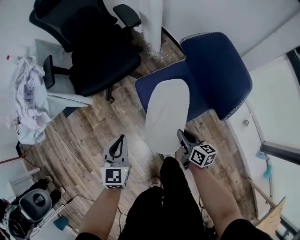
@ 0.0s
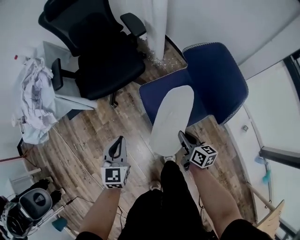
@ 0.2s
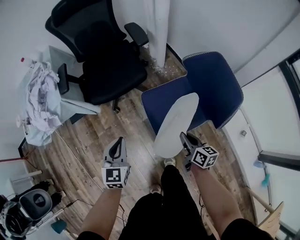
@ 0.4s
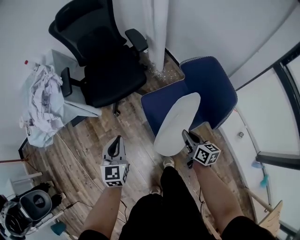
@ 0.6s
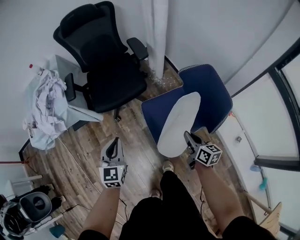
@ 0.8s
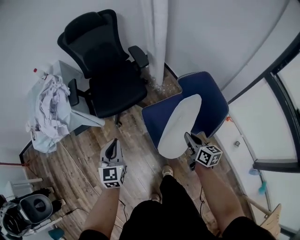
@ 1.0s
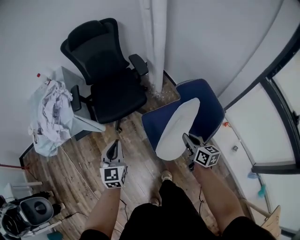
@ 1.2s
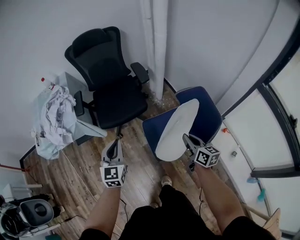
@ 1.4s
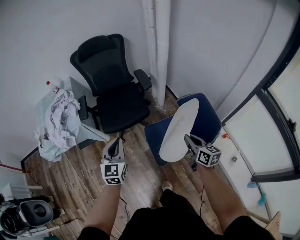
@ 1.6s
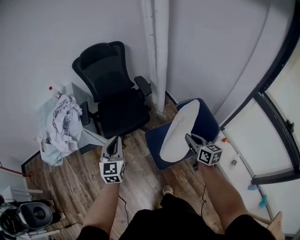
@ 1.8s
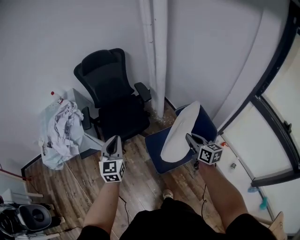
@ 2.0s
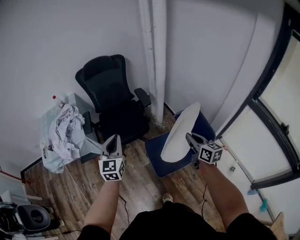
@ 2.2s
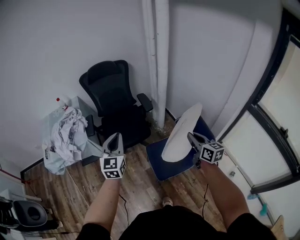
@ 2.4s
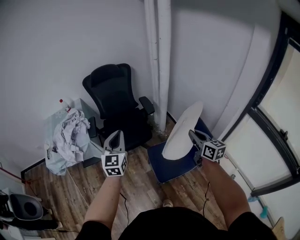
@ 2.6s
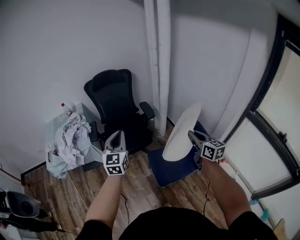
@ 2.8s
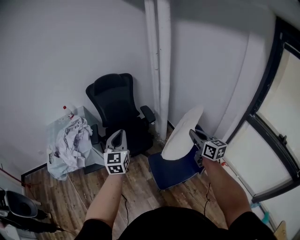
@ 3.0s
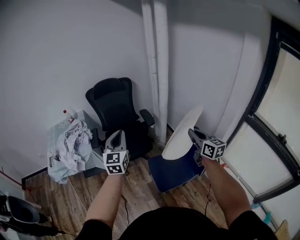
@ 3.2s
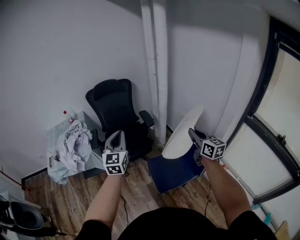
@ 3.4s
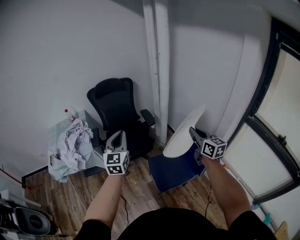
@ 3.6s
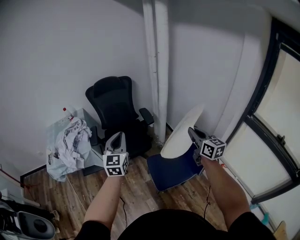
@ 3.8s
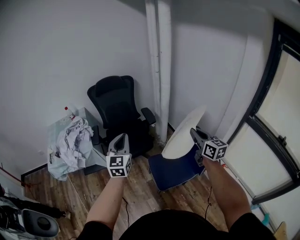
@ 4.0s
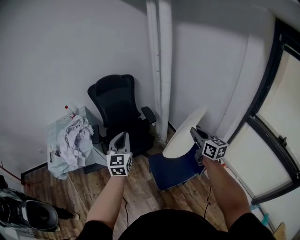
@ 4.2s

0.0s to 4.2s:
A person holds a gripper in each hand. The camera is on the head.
0.0s to 1.4s: Both grippers travel together upward, about 25 cm.
1.4s to 2.8s: The grippers both shift upward by roughly 20 cm.
2.8s to 4.2s: The grippers make only small movements.

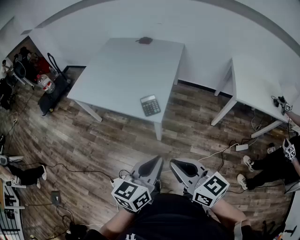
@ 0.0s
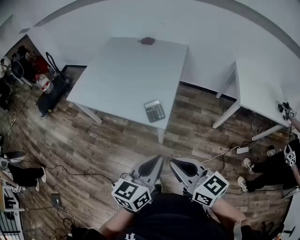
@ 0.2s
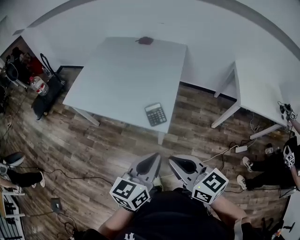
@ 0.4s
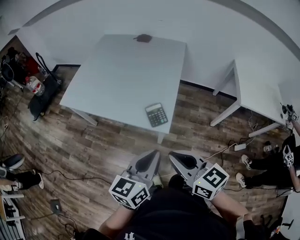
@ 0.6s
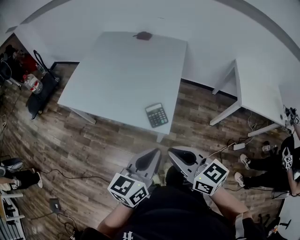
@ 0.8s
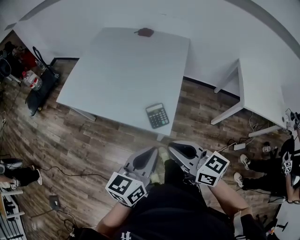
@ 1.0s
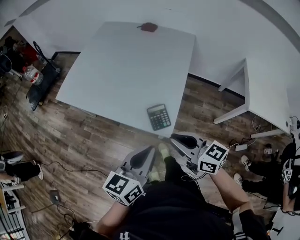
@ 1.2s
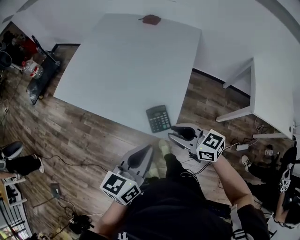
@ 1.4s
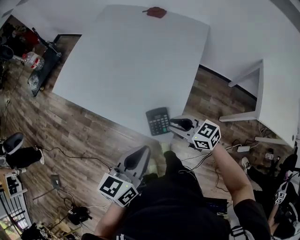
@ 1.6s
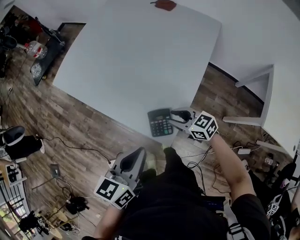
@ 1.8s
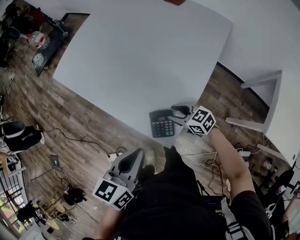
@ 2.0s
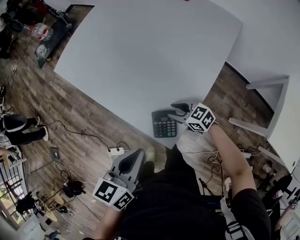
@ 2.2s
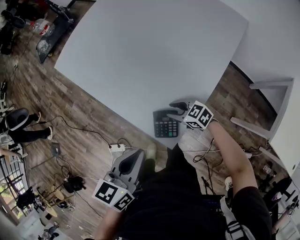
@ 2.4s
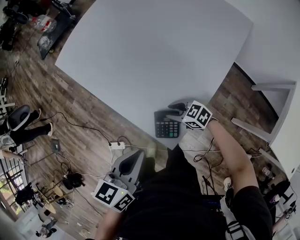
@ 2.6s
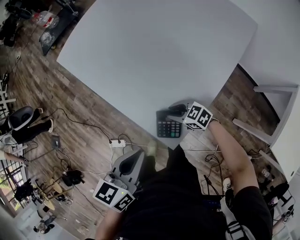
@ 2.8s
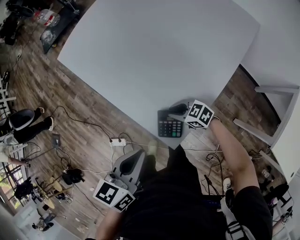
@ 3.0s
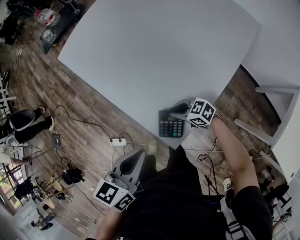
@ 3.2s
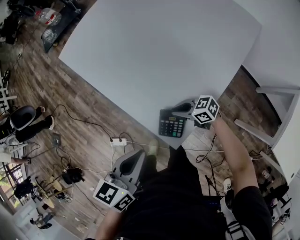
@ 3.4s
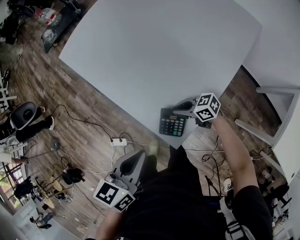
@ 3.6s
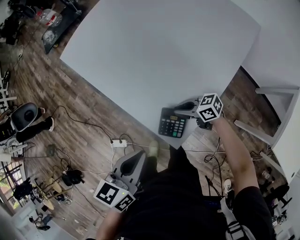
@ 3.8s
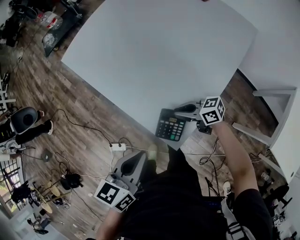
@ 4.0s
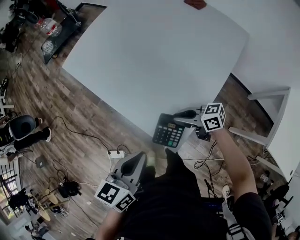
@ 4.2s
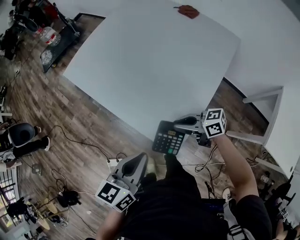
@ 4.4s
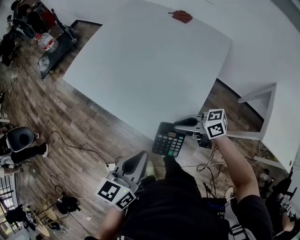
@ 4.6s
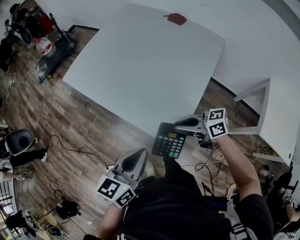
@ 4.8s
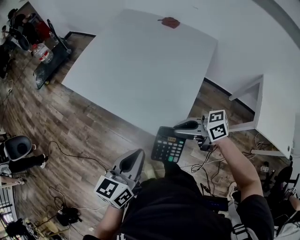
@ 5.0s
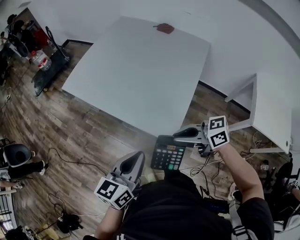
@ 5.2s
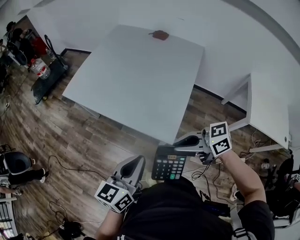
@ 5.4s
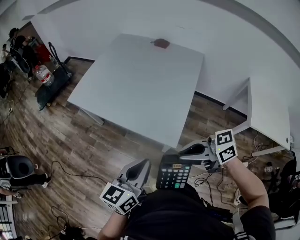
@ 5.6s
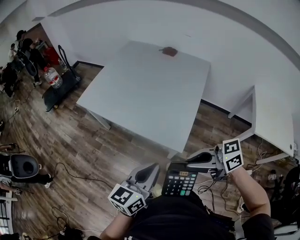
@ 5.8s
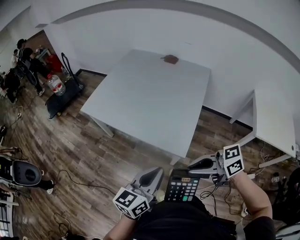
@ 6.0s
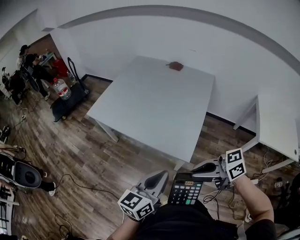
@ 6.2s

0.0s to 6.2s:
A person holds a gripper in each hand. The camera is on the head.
0.0s to 1.6s: The right gripper heads forward and downward, covering about 40 cm, and rotates roughly 30 degrees. The left gripper is displaced forward by roughly 30 cm.
1.6s to 3.2s: The left gripper ends up some 5 cm from where it was, and swivels some 20 degrees. The right gripper heads downward, covering approximately 15 cm, and changes its angle by about 40 degrees.
3.2s to 4.6s: The left gripper moves upward, about 5 cm. Meanwhile the right gripper shifts roughly 20 cm upward, and turns by roughly 30 degrees.
4.6s to 6.2s: The right gripper shifts approximately 30 cm backward, upward and to the left, while the left gripper moves backward and to the left, approximately 15 cm.

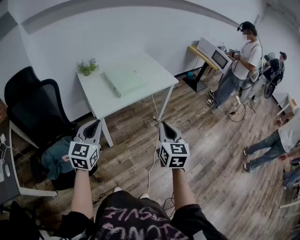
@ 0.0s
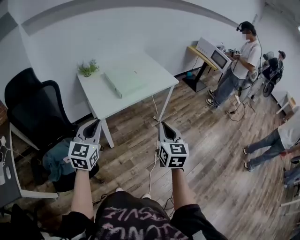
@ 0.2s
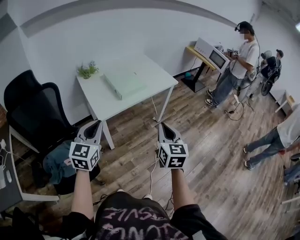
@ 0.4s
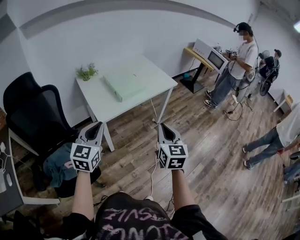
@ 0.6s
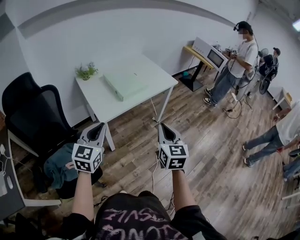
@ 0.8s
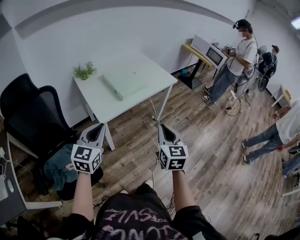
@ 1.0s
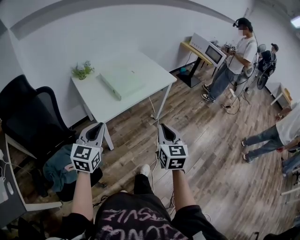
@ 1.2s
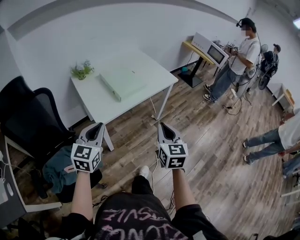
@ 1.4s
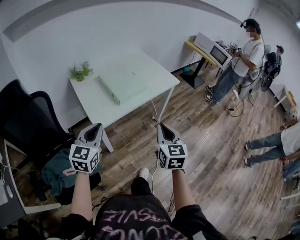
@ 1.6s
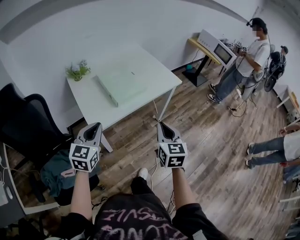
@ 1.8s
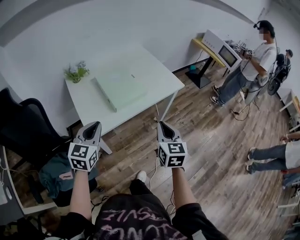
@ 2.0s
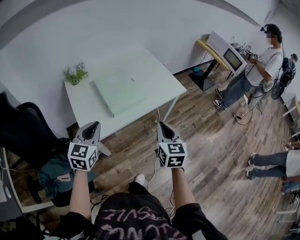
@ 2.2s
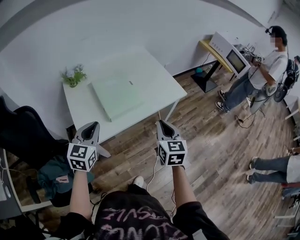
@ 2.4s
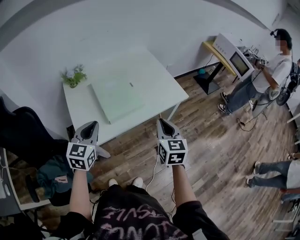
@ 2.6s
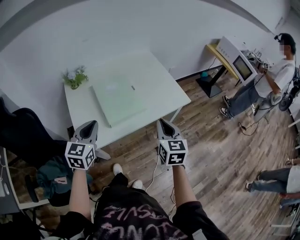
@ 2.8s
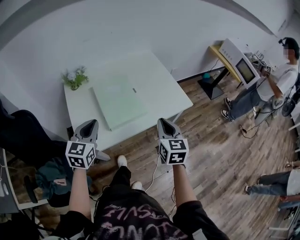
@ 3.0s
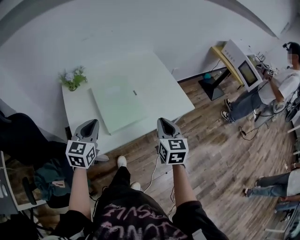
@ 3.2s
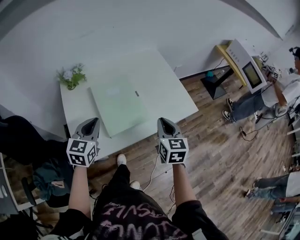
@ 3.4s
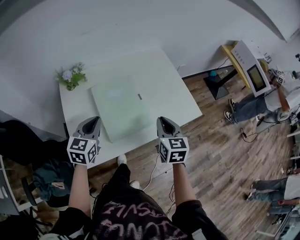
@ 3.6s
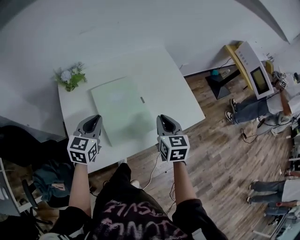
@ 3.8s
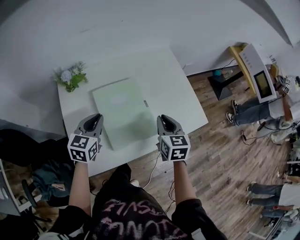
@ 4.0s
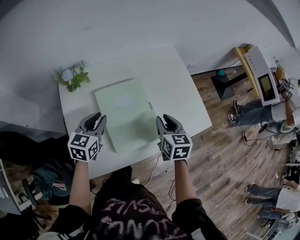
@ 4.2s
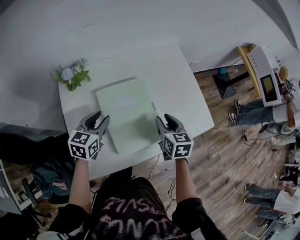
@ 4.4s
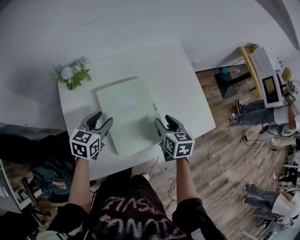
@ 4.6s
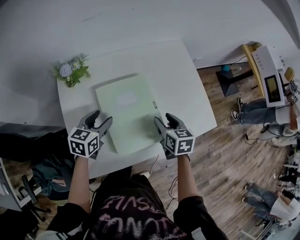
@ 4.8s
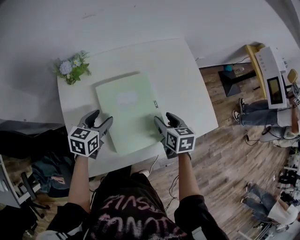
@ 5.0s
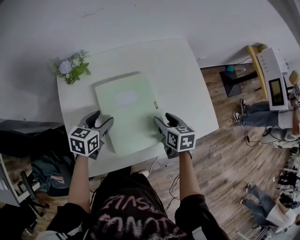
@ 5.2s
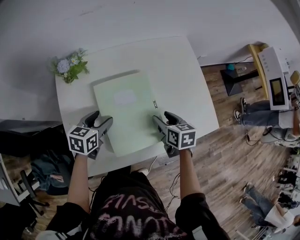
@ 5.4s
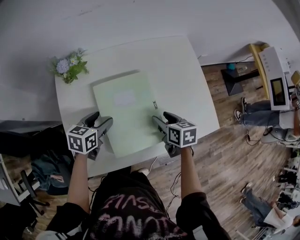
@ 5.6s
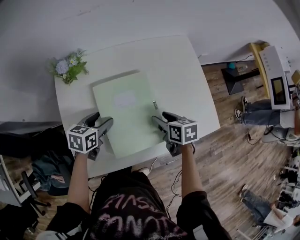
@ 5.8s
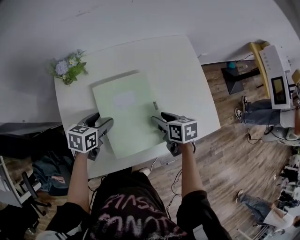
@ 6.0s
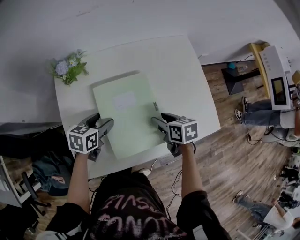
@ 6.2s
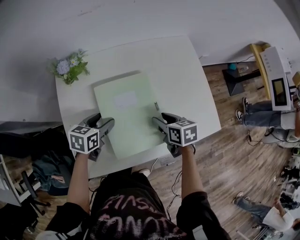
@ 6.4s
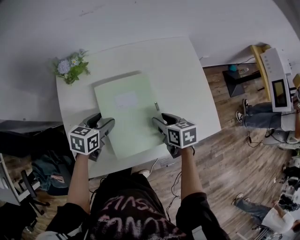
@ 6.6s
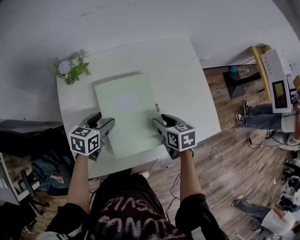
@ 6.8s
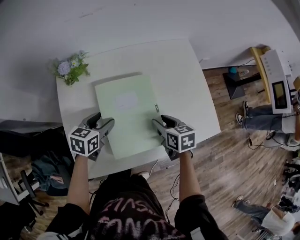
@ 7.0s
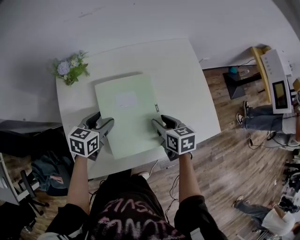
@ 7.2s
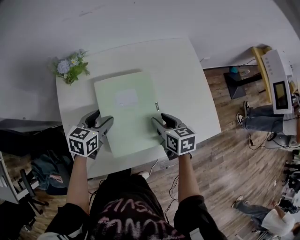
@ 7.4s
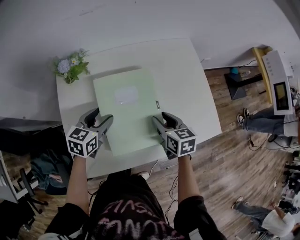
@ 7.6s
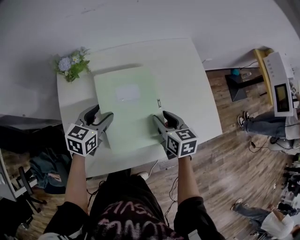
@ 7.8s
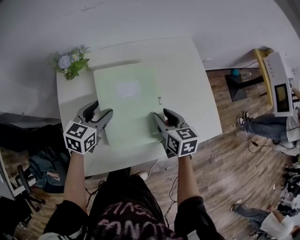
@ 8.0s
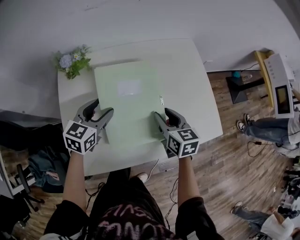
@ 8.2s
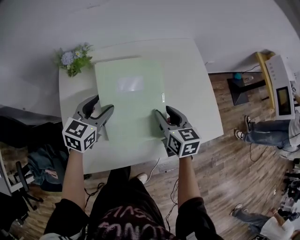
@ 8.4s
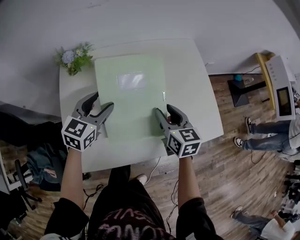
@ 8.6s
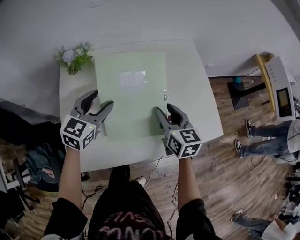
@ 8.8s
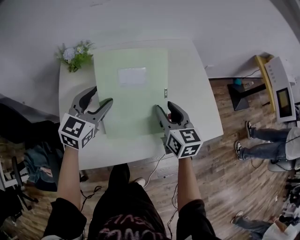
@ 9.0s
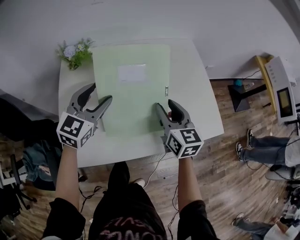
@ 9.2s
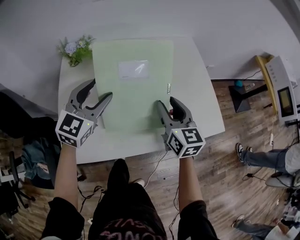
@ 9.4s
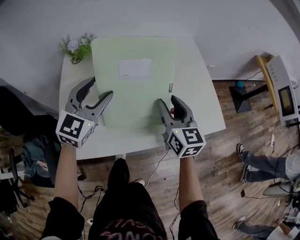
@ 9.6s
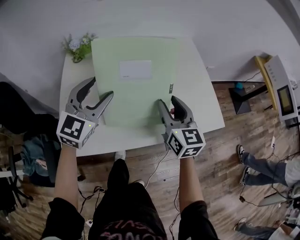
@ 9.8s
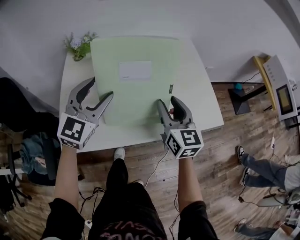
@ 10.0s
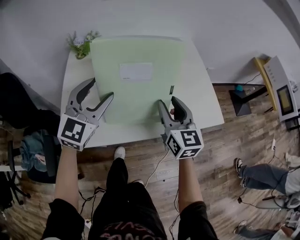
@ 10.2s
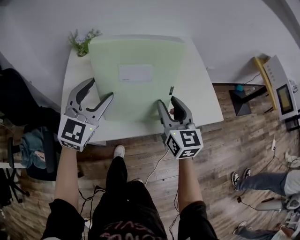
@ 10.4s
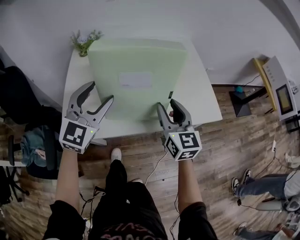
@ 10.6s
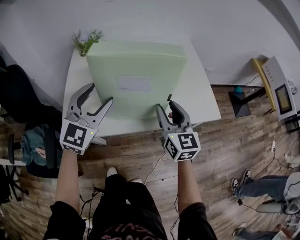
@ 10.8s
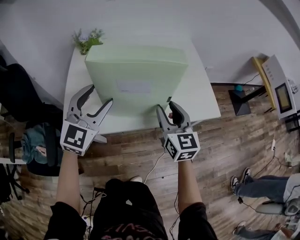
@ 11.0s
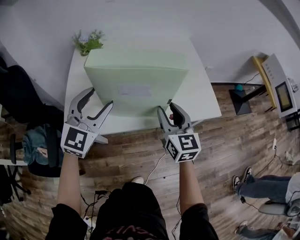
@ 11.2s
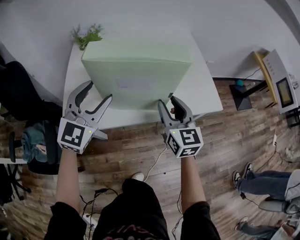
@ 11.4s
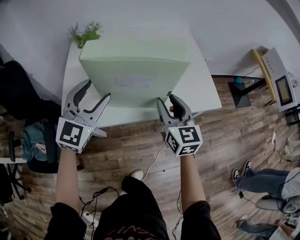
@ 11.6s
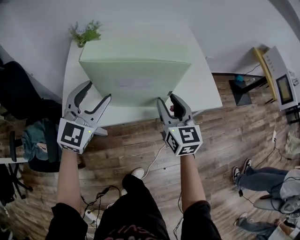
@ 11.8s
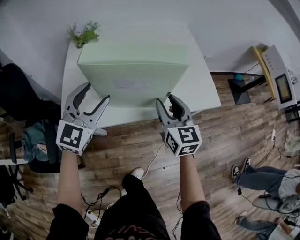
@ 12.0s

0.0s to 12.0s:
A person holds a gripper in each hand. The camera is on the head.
0.0s to 1.6s: Both grippers move forward, approximately 10 cm.
1.6s to 3.0s: The grippers both shift forward by about 30 cm.
3.0s to 4.4s: The left gripper shifts approximately 25 cm forward and downward, and opens, while the right gripper shifts some 25 cm forward, downward and to the left, changes its angle by about 20 degrees, and opens its fingers.
4.4s to 6.0s: Both grippers move downward, about 10 cm. The right gripper changes its angle by some 30 degrees. The left gripper changes its angle by approximately 20 degrees, and opens.
6.0s to 7.6s: The grippers make only small movements.
7.6s to 9.0s: The left gripper moves upward, about 5 cm, and turns by about 30 degrees. Meanwhile the right gripper rotates approximately 20 degrees.
9.0s to 10.4s: Both grippers travel together backward, about 10 cm. The left gripper changes its angle by approximately 20 degrees.
10.4s to 12.0s: The left gripper shifts some 5 cm backward.

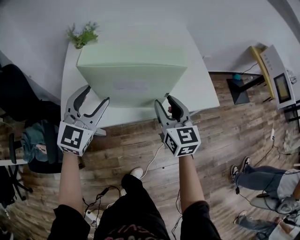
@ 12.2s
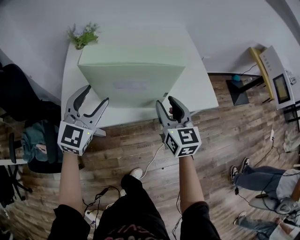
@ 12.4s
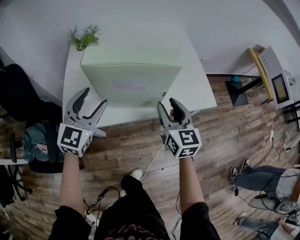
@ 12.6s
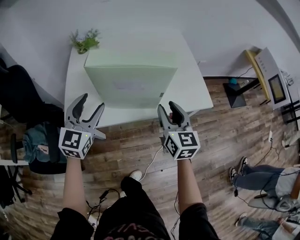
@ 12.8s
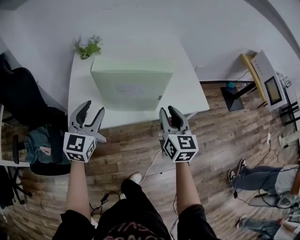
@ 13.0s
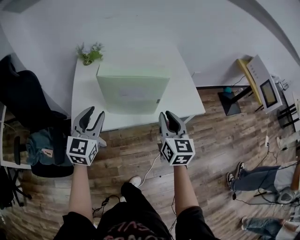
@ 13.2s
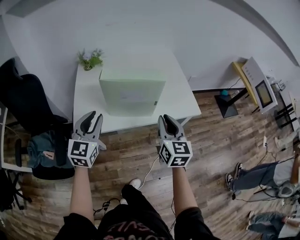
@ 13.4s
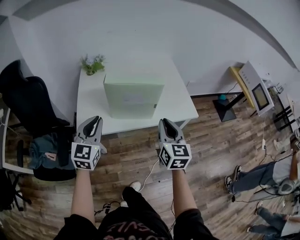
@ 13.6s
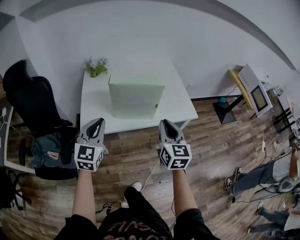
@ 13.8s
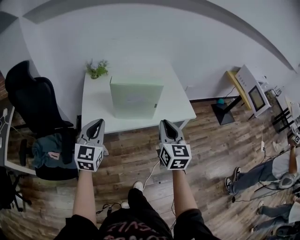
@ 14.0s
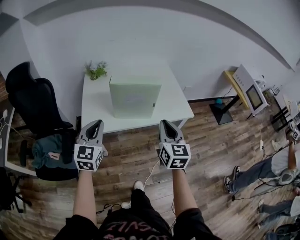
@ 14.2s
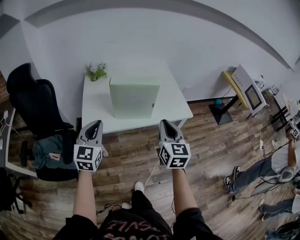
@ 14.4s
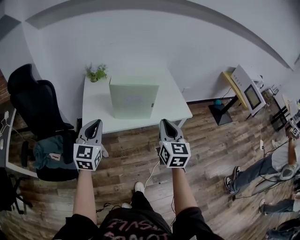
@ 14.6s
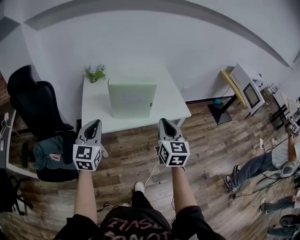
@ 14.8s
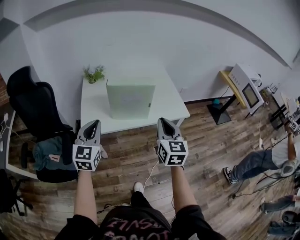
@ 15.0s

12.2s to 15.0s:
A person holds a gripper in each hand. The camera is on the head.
12.2s to 13.6s: The left gripper shifts about 15 cm backward and upward, and closes. The right gripper heads upward and backward, covering roughly 15 cm, and closes up.
13.6s to 15.0s: The two grippers go approximately 10 cm backward and upward.
